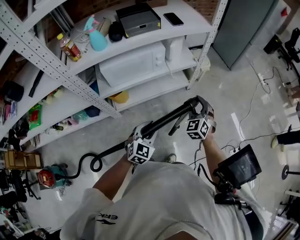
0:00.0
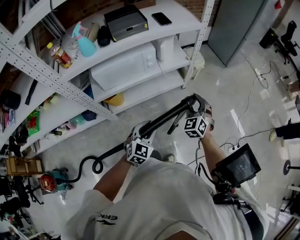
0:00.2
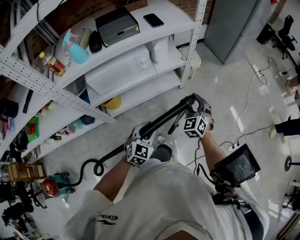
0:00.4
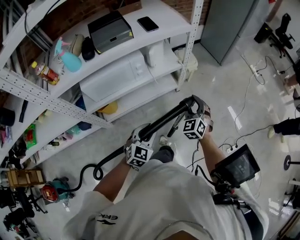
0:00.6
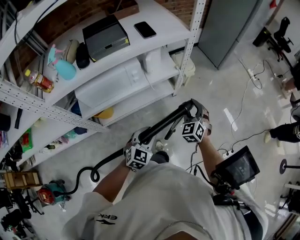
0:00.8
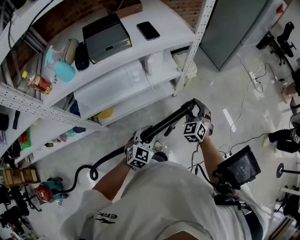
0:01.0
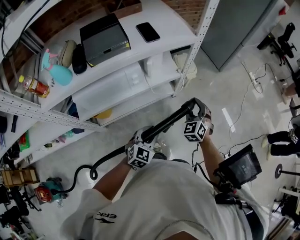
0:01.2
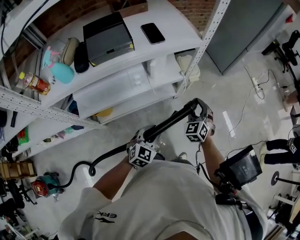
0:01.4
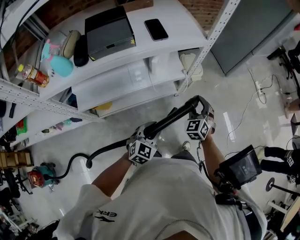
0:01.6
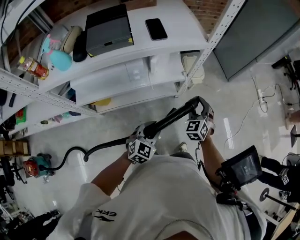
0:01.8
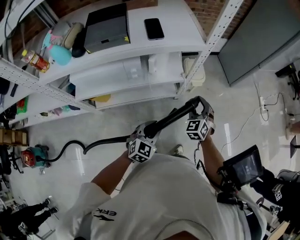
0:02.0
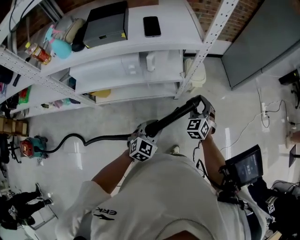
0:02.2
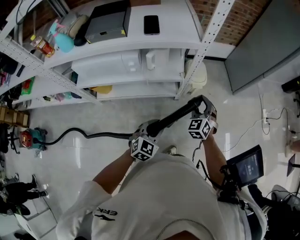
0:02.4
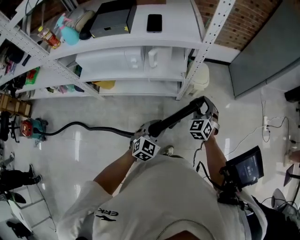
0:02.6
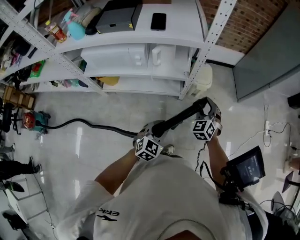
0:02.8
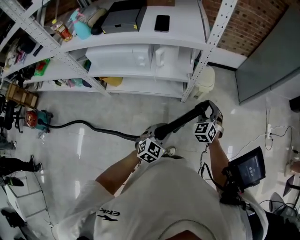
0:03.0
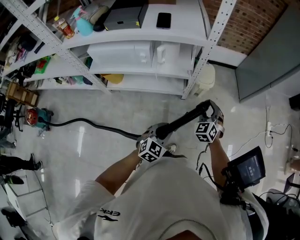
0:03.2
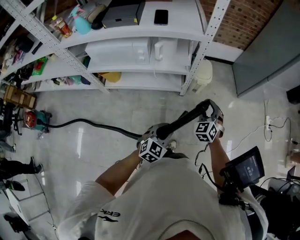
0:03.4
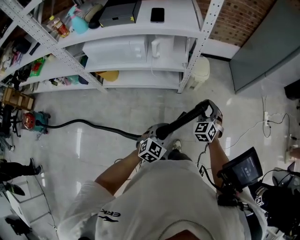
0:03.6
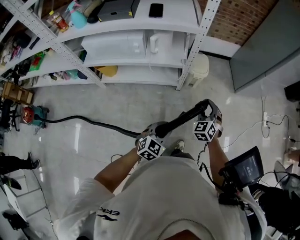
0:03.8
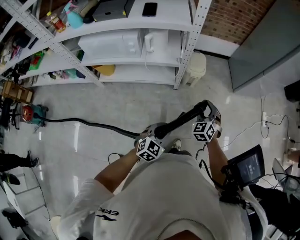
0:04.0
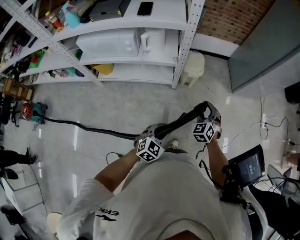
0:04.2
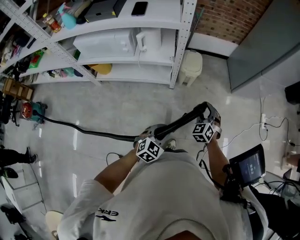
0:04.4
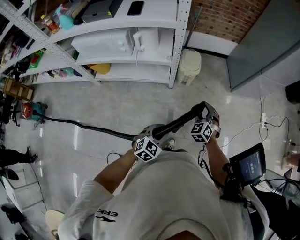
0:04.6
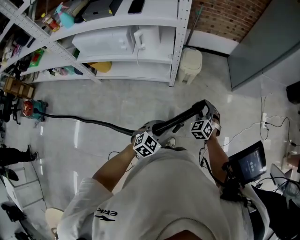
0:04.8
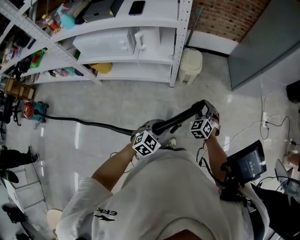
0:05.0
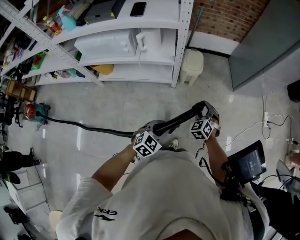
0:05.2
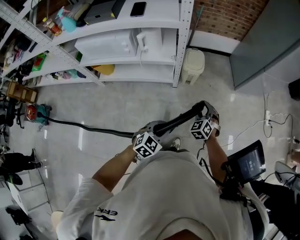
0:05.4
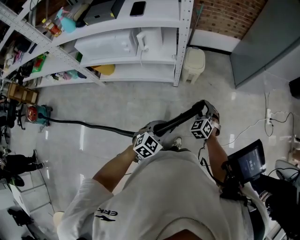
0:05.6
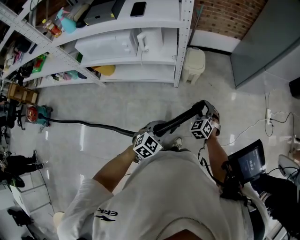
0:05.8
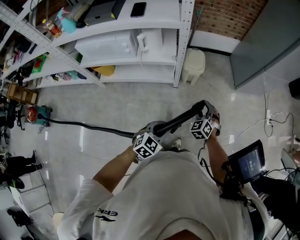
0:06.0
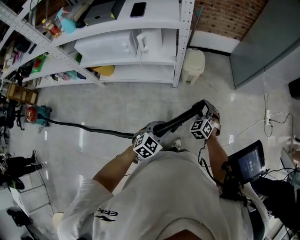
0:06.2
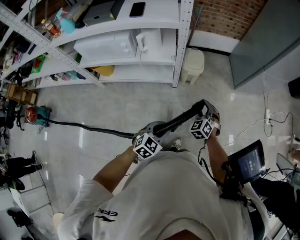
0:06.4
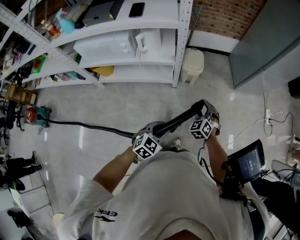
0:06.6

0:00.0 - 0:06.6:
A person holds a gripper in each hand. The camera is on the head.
0:00.0 - 0:01.6: Both grippers move forward, roughly 25 cm.
0:01.6 - 0:03.2: Both grippers travel together to the right, about 20 cm.
0:03.2 - 0:05.0: The right gripper goes about 15 cm to the right and downward; the left gripper travels to the right by approximately 15 cm.
0:05.0 - 0:06.6: The grippers move only a little.

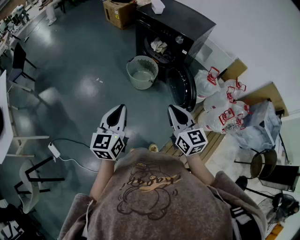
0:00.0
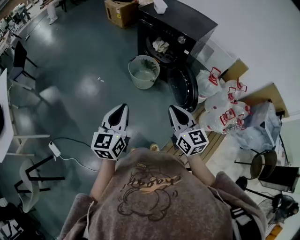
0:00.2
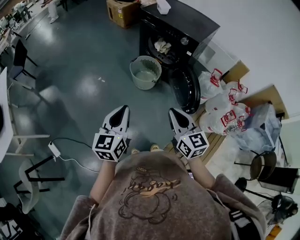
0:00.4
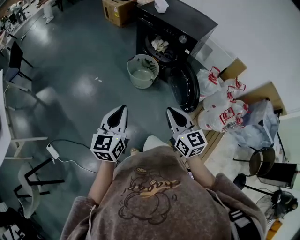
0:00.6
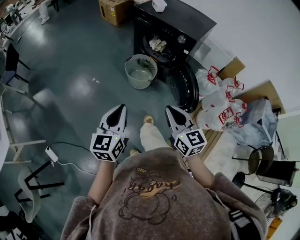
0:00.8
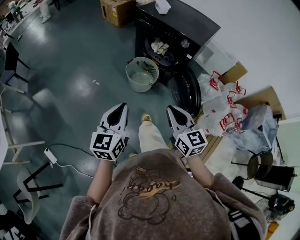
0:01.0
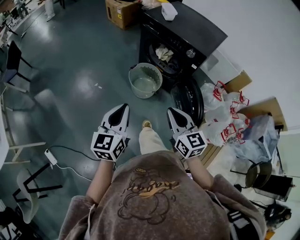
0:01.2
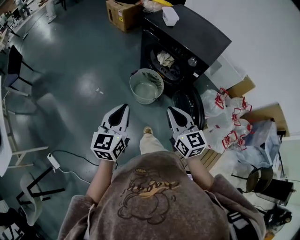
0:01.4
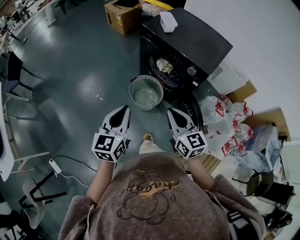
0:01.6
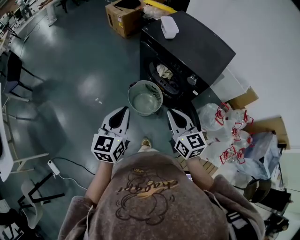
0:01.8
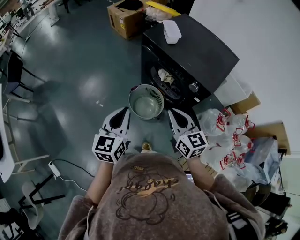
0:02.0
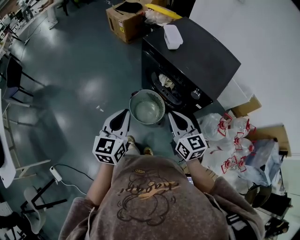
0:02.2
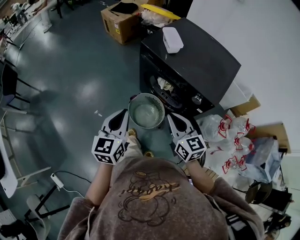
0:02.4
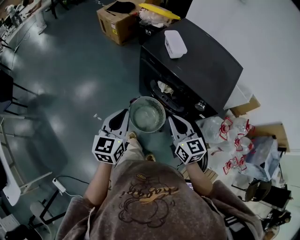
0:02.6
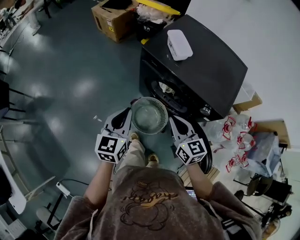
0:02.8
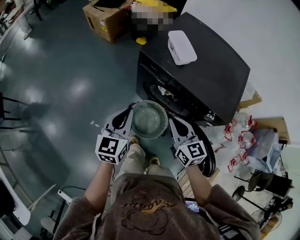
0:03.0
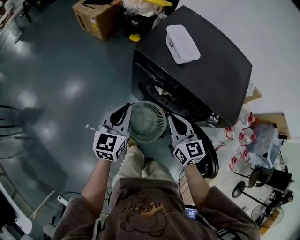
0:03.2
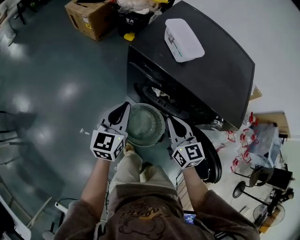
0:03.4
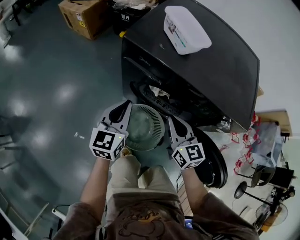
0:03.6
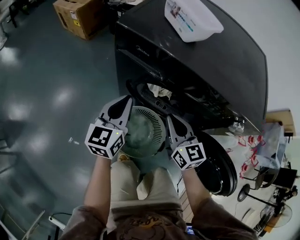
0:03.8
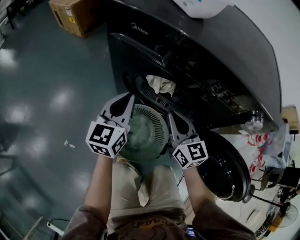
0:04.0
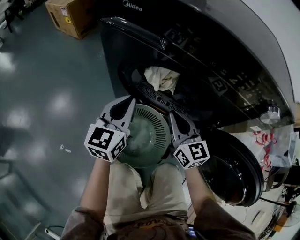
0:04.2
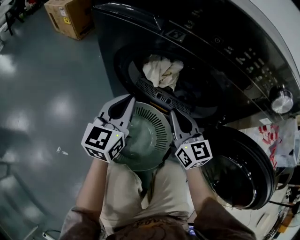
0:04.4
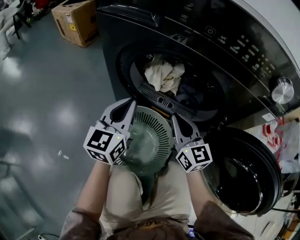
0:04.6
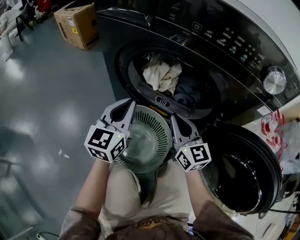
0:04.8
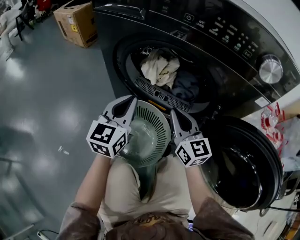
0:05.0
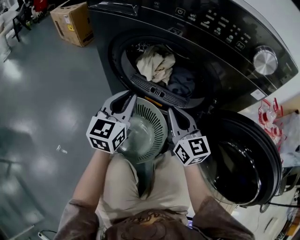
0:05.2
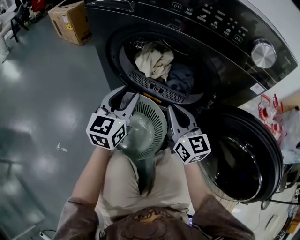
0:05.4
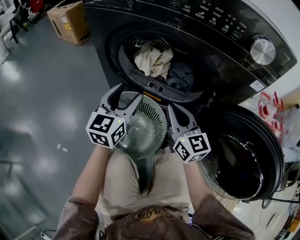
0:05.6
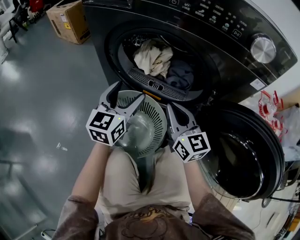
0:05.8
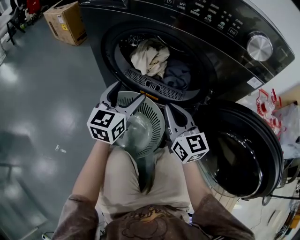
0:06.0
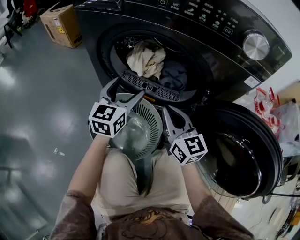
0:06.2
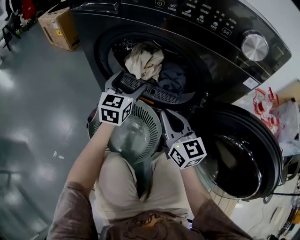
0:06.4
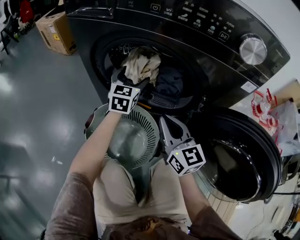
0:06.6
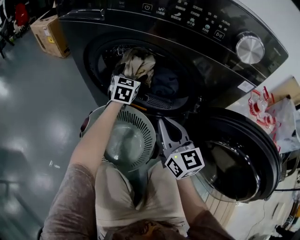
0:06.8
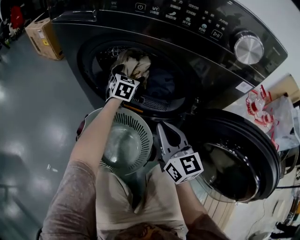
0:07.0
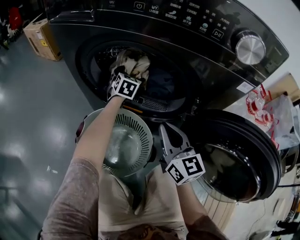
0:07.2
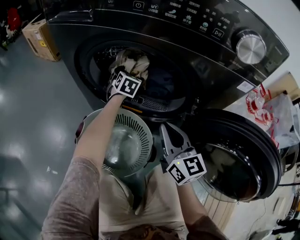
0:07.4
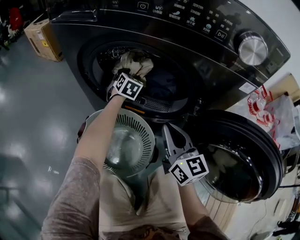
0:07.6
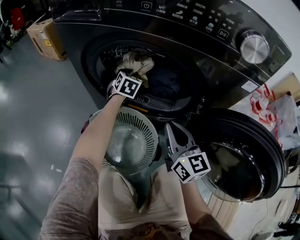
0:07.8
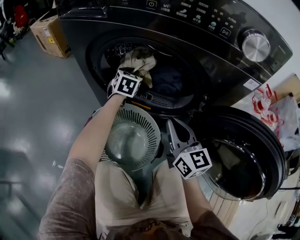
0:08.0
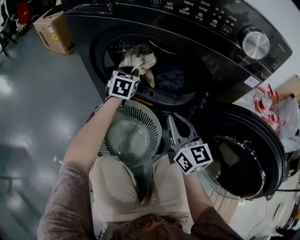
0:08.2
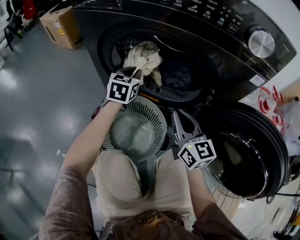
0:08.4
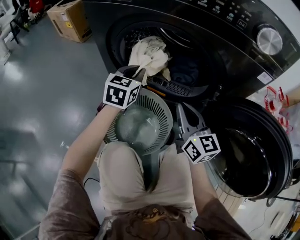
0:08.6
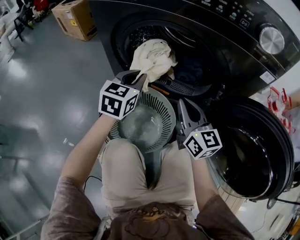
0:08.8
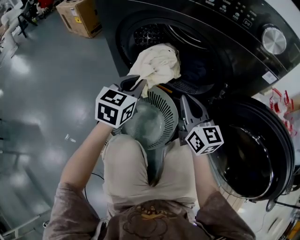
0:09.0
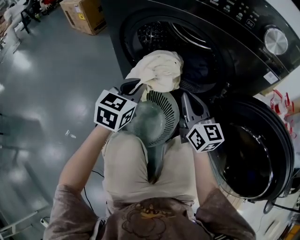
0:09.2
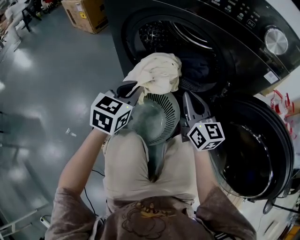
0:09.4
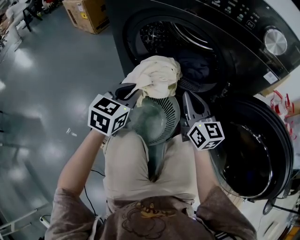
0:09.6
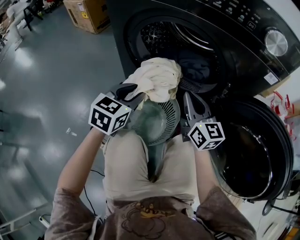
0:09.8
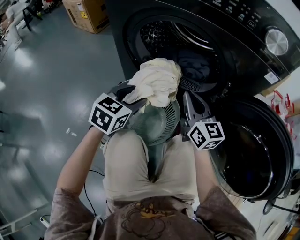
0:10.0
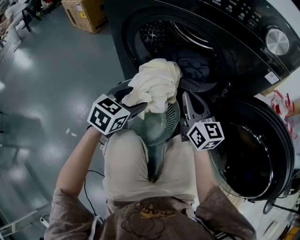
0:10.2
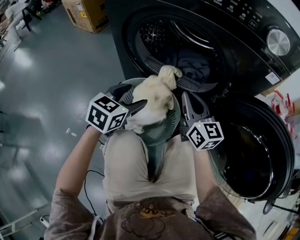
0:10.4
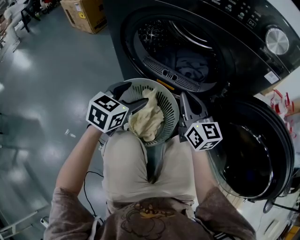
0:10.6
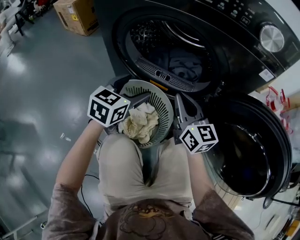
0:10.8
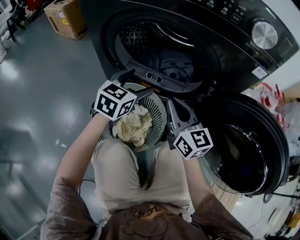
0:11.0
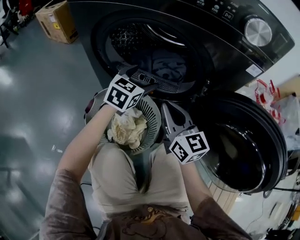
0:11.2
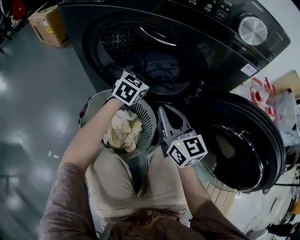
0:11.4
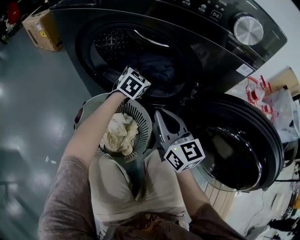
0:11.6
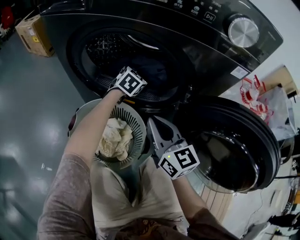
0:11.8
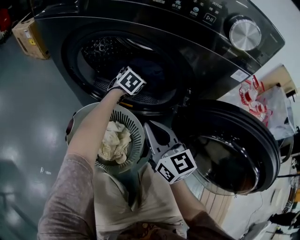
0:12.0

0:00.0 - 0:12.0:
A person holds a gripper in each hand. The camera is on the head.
0:00.0 - 0:01.6: The two grippers go approximately 30 cm forward.
0:01.6 - 0:03.0: The two grippers go approximately 35 cm forward.
0:03.0 - 0:04.4: The two grippers go about 40 cm downward.
0:04.4 - 0:06.0: The right gripper travels backward by about 5 cm; the left gripper shifts approximately 5 cm to the right, and opens its fingers.
0:06.0 - 0:07.6: The left gripper shifts about 25 cm forward and downward, turns by some 40 degrees, and closes up.
0:07.6 - 0:09.0: The left gripper moves backward and upward, approximately 25 cm, turns by about 20 degrees, and closes.
0:09.0 - 0:10.4: The left gripper goes approximately 5 cm backward, and opens.
0:10.4 - 0:12.0: The left gripper travels forward and to the right by some 30 cm, and rotates about 20 degrees.

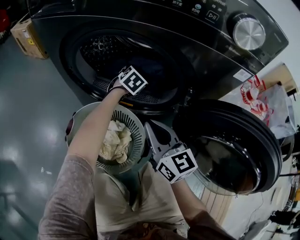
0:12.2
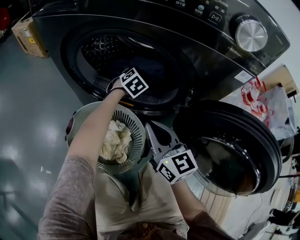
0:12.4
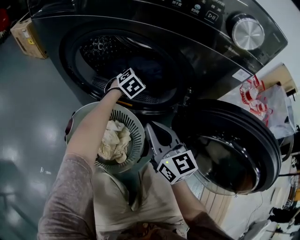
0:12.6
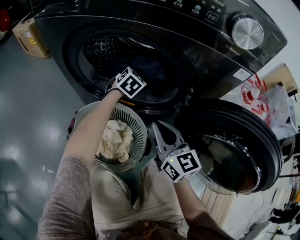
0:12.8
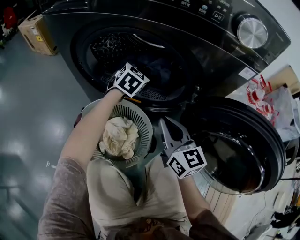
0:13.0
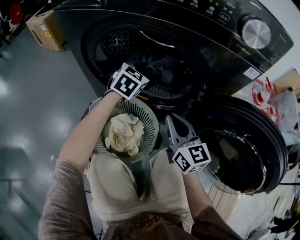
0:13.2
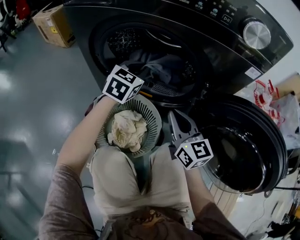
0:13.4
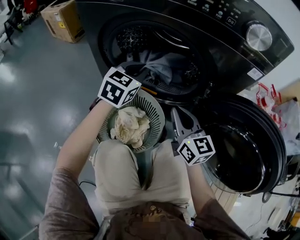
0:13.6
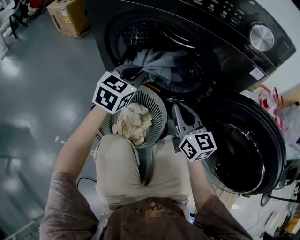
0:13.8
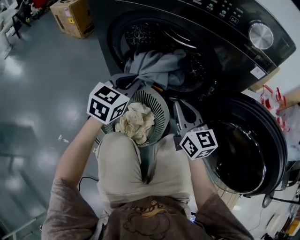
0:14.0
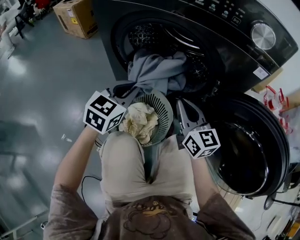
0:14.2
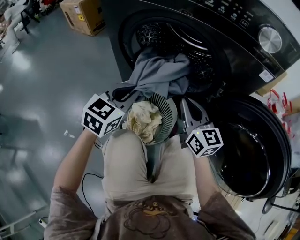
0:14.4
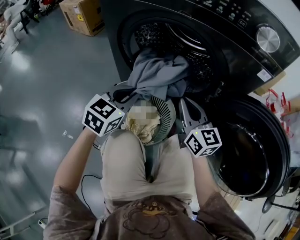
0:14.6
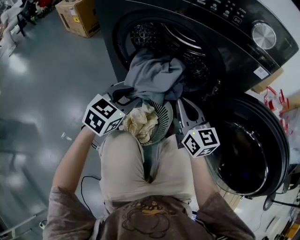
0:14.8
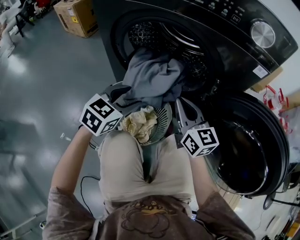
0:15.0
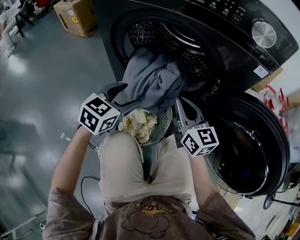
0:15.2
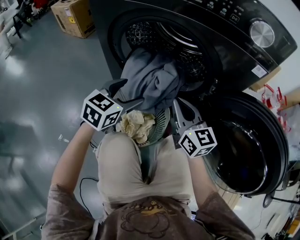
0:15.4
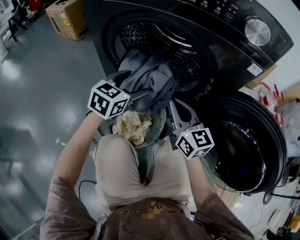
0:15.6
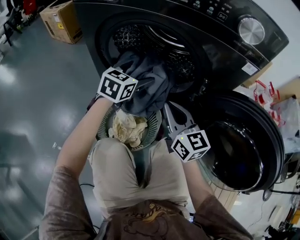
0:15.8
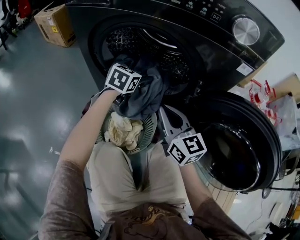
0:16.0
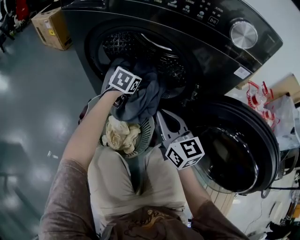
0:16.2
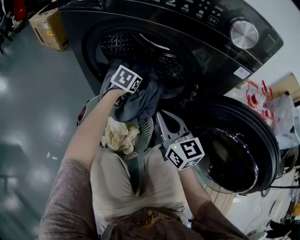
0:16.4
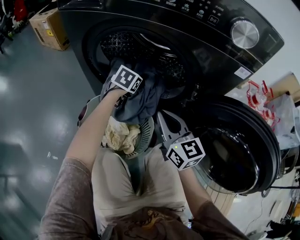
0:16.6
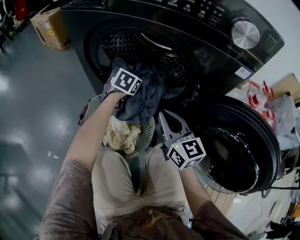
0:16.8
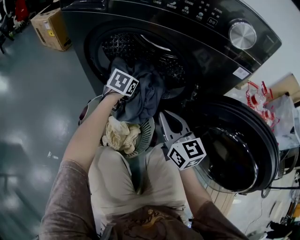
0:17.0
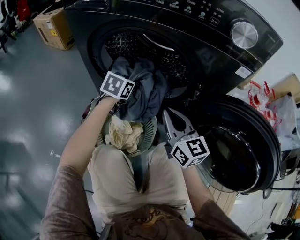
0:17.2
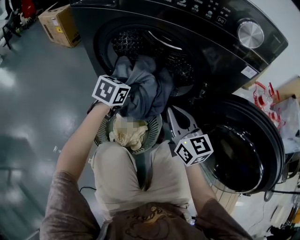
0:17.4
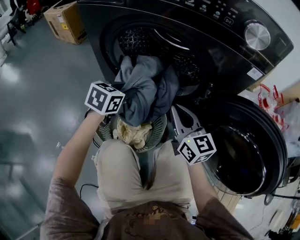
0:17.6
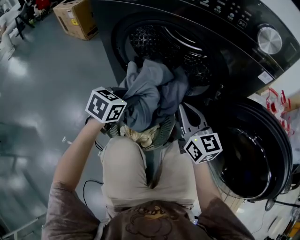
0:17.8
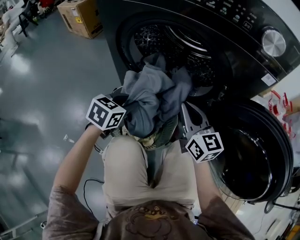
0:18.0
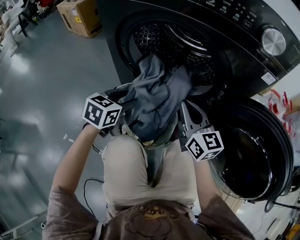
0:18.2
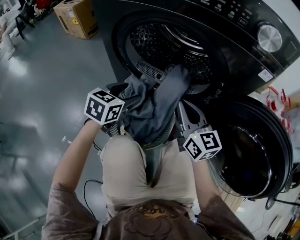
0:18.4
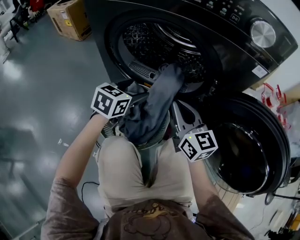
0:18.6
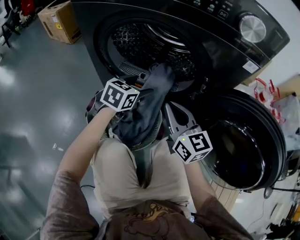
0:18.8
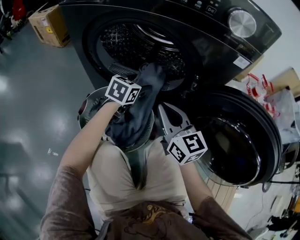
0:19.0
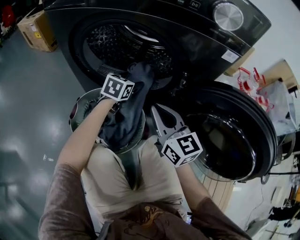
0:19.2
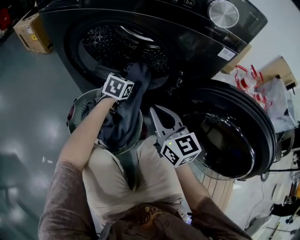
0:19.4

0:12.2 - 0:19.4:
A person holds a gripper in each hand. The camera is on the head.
0:12.2 - 0:13.6: The left gripper heads upward, backward and to the left, covering some 25 cm, rotates some 30 degrees, and closes up.
0:13.6 - 0:15.0: The left gripper goes some 15 cm backward, and opens up.
0:15.0 - 0:16.6: The left gripper goes approximately 25 cm forward and downward.
0:16.6 - 0:18.0: The left gripper shifts some 20 cm backward and to the left, and closes its fingers.
0:18.0 - 0:19.4: The left gripper shifts roughly 20 cm forward and to the right, and opens its fingers.
